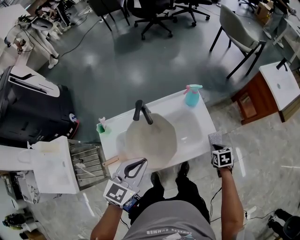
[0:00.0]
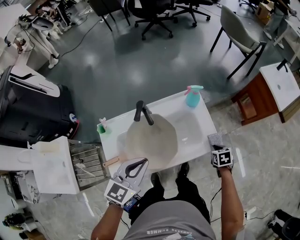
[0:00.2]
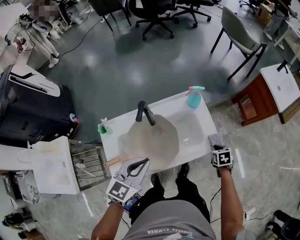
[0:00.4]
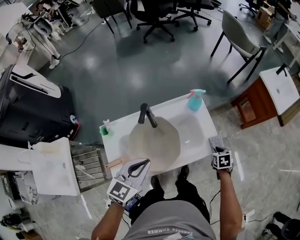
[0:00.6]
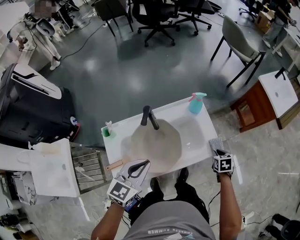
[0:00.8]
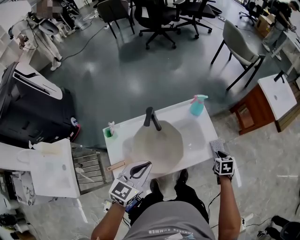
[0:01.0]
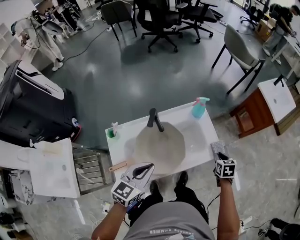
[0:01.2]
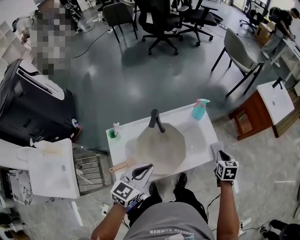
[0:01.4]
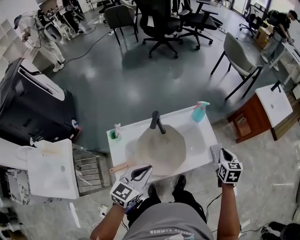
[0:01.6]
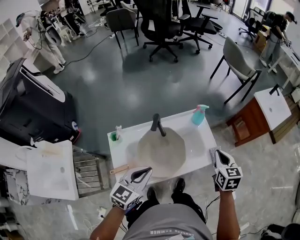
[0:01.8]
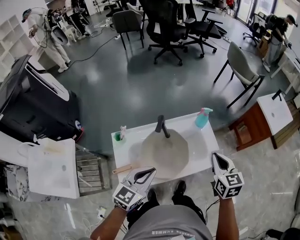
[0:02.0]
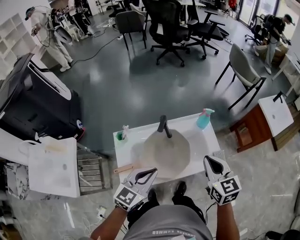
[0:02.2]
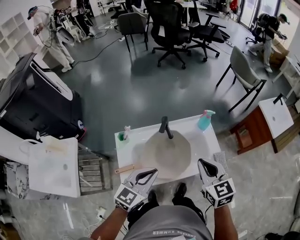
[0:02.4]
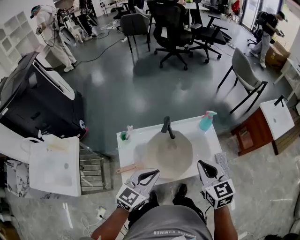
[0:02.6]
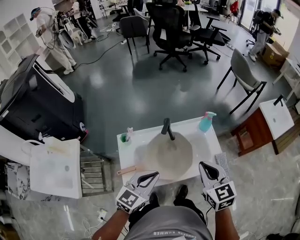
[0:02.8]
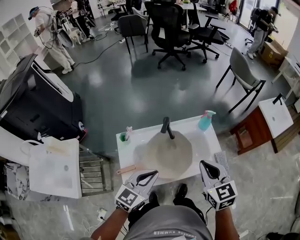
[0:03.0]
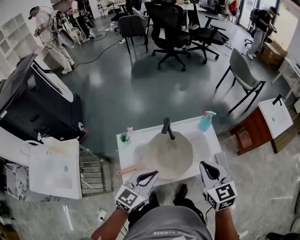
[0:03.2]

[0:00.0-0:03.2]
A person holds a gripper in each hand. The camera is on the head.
0:00.0 to 0:01.6: The left gripper heads to the left, covering some 5 cm; the right gripper shifts some 20 cm upward, and turns by approximately 30 degrees.
0:01.6 to 0:03.2: The right gripper moves to the left, upward and backward, about 25 cm, and turns by roughly 30 degrees. Meanwhile the left gripper changes place by about 5 cm.

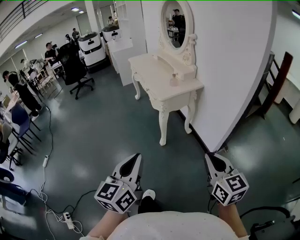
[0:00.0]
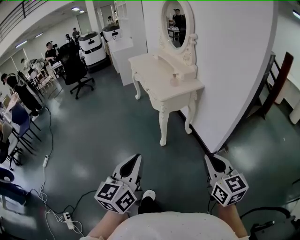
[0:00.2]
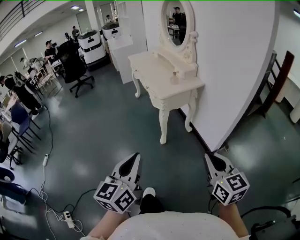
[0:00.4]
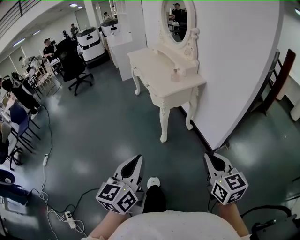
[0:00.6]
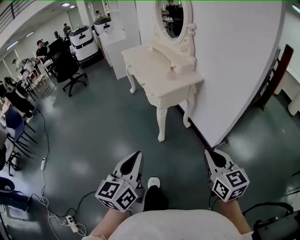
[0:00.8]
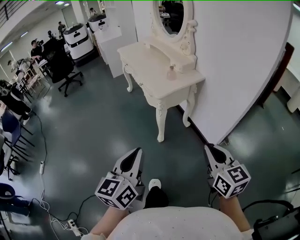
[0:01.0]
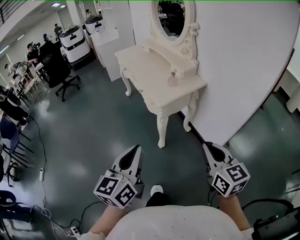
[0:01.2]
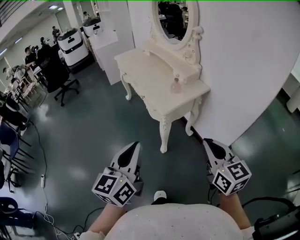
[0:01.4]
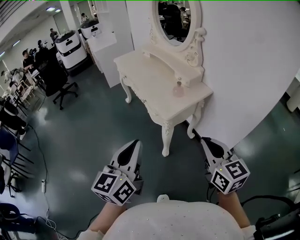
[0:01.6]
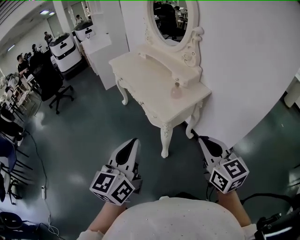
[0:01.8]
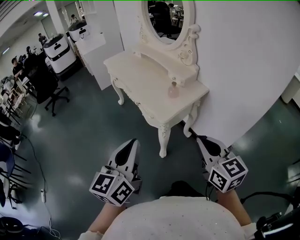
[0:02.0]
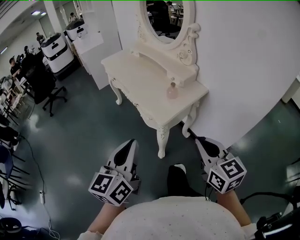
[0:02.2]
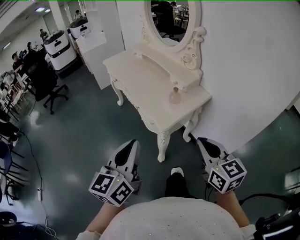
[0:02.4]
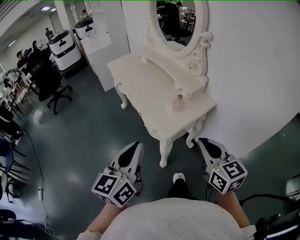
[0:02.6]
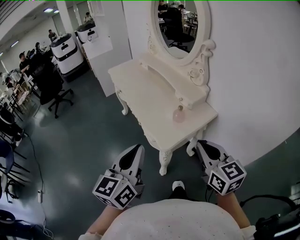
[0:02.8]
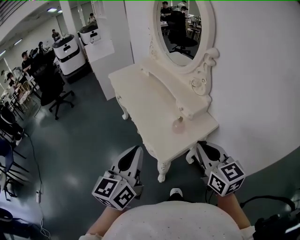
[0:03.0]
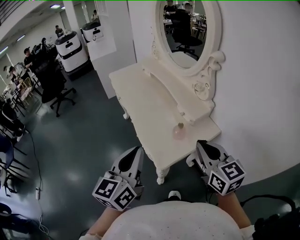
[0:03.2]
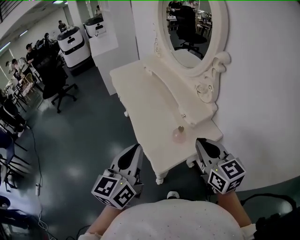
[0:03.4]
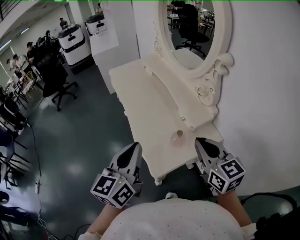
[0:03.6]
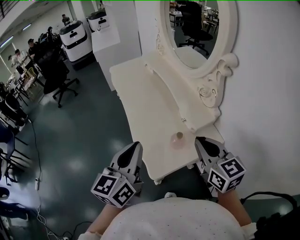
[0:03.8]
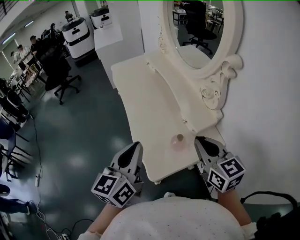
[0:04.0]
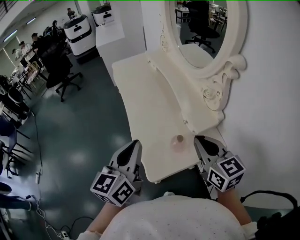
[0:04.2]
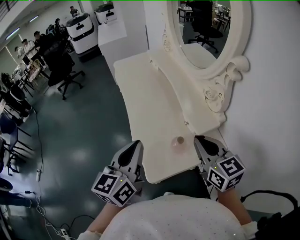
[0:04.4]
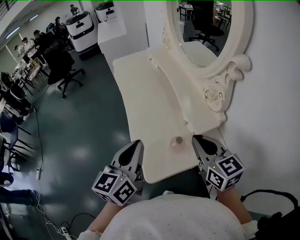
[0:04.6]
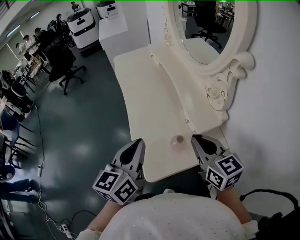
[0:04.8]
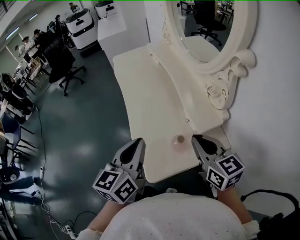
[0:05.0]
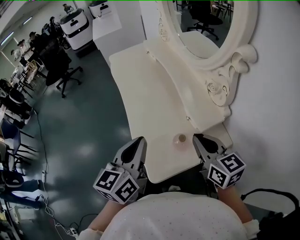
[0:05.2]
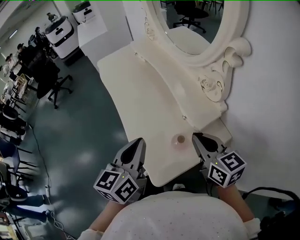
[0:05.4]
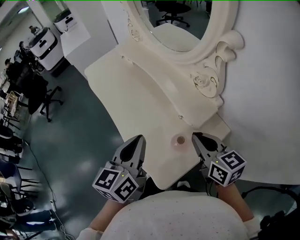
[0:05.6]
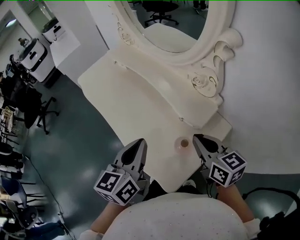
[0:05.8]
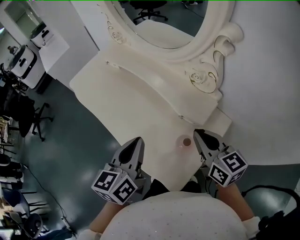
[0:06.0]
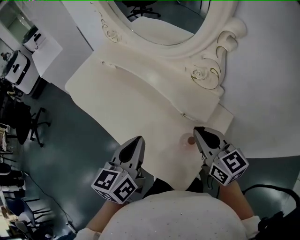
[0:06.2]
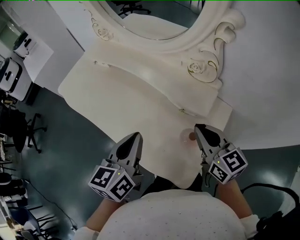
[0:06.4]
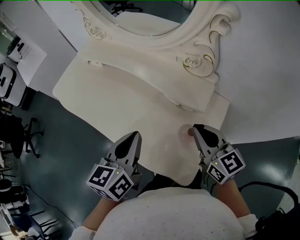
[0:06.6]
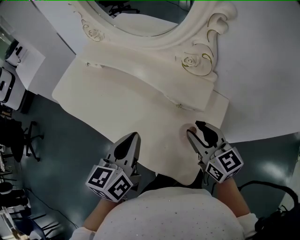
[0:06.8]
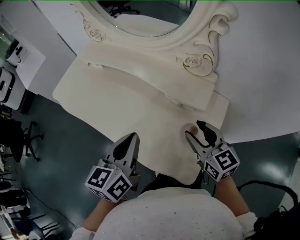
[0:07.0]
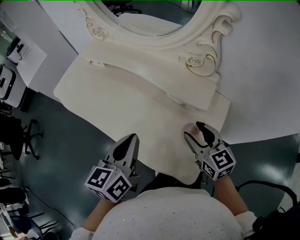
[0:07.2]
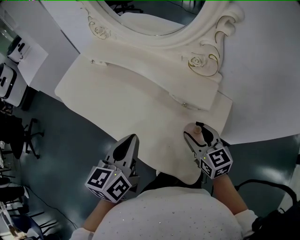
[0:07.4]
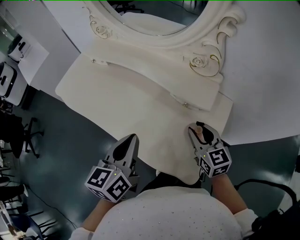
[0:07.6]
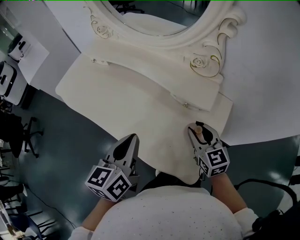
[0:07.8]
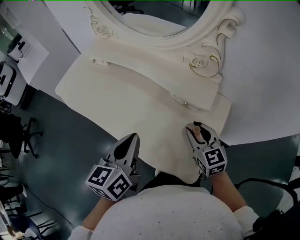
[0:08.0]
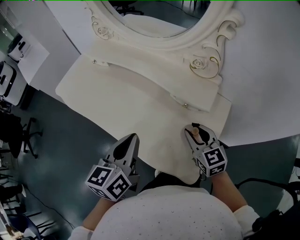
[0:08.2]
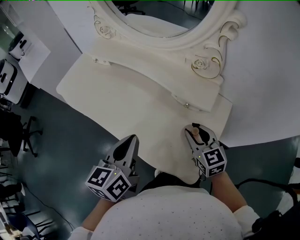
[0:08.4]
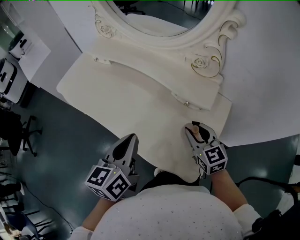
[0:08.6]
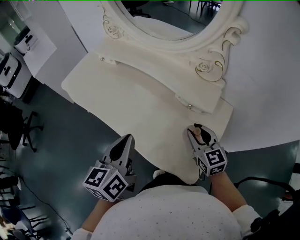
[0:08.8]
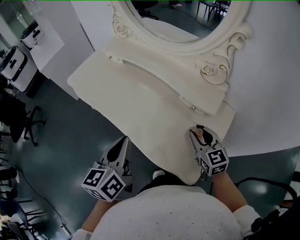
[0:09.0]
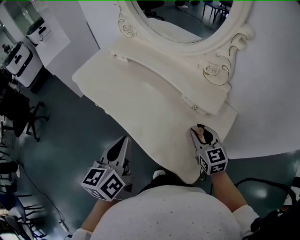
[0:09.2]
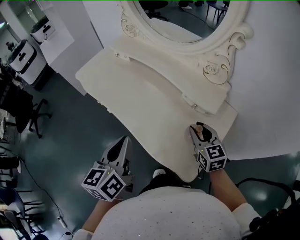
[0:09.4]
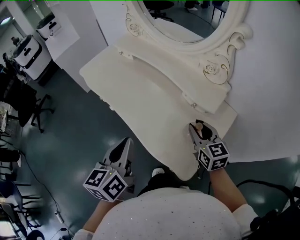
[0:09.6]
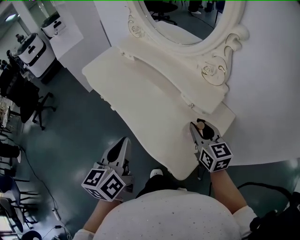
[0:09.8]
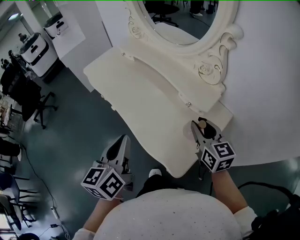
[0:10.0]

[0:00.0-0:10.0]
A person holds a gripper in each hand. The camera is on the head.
0:00.0 to 0:01.4: Both grippers travel together forward, roughly 30 cm.
0:01.4 to 0:02.8: The two grippers go roughly 25 cm forward.
0:02.8 to 0:04.2: Both grippers travel together forward, approximately 20 cm.
0:04.2 to 0:05.8: The left gripper moves forward and downward, some 15 cm, and swivels roughly 20 degrees; the right gripper heads downward and forward, covering approximately 10 cm, and turns by some 20 degrees.
0:05.8 to 0:07.2: The right gripper goes roughly 5 cm downward, changes its angle by about 20 degrees, and opens up, while the left gripper heads to the left, covering about 5 cm.
0:07.2 to 0:08.6: The right gripper closes up.
0:08.6 to 0:10.0: The left gripper travels backward by some 10 cm, and rotates approximately 20 degrees. Meanwhile the right gripper travels upward by approximately 10 cm.

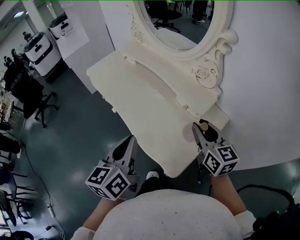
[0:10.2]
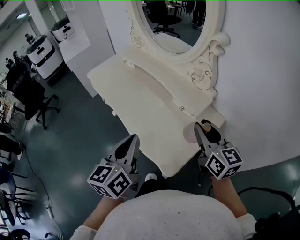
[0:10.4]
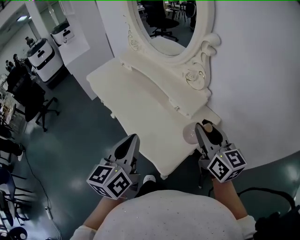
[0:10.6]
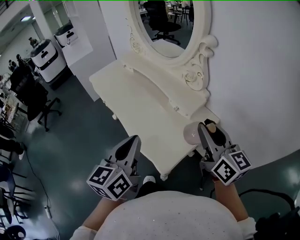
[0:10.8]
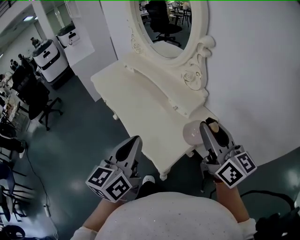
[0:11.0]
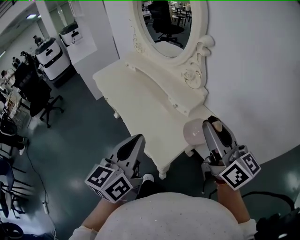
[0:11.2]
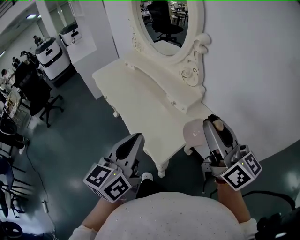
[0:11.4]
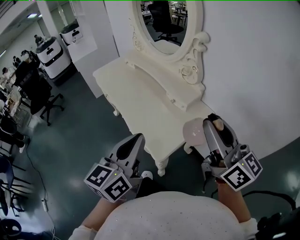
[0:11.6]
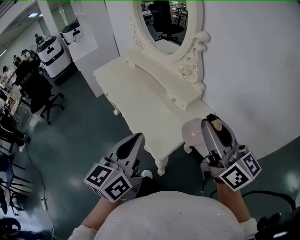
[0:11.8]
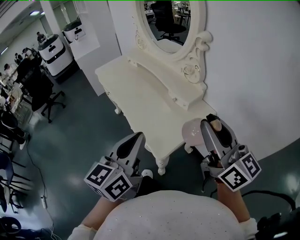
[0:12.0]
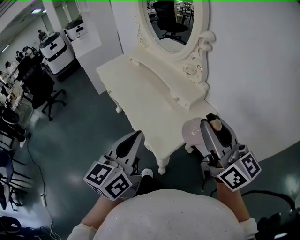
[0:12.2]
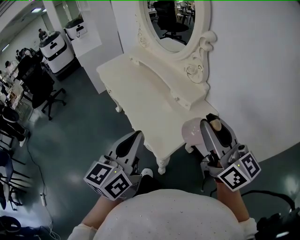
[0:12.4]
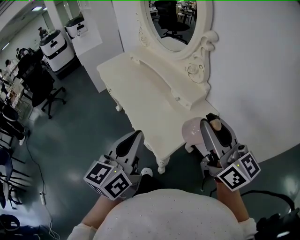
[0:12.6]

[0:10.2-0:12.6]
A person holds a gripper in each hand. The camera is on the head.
0:10.2 to 0:11.4: The left gripper is displaced backward, to the right and upward by some 20 cm, while the right gripper moves upward and backward, about 25 cm, and turns by approximately 30 degrees.
0:11.4 to 0:12.6: There are only small adjustments of the grippers.

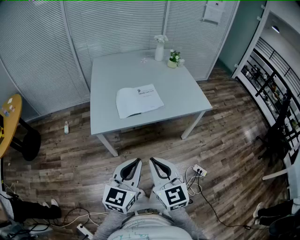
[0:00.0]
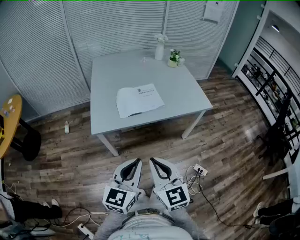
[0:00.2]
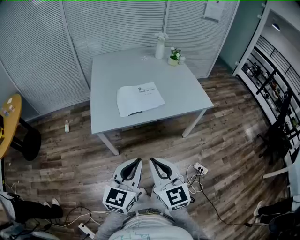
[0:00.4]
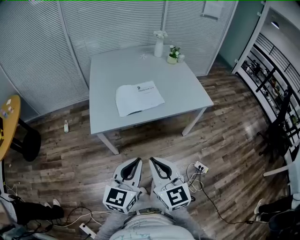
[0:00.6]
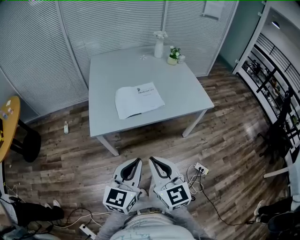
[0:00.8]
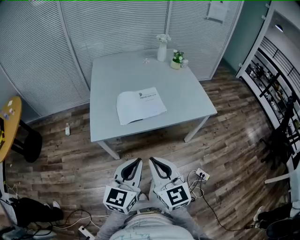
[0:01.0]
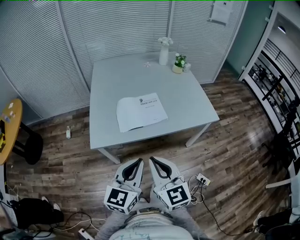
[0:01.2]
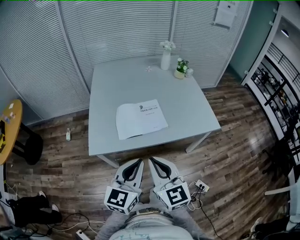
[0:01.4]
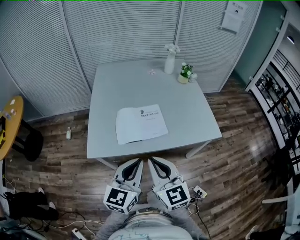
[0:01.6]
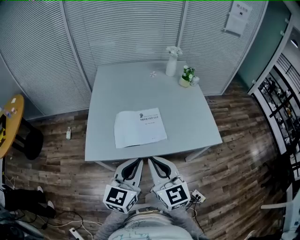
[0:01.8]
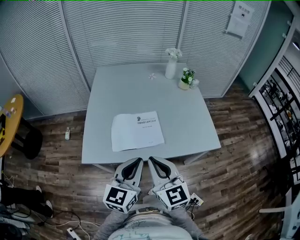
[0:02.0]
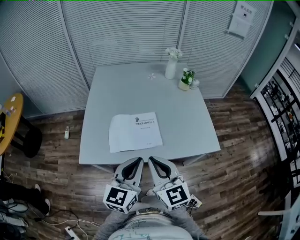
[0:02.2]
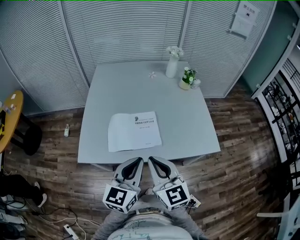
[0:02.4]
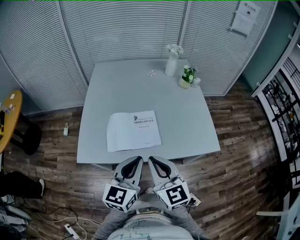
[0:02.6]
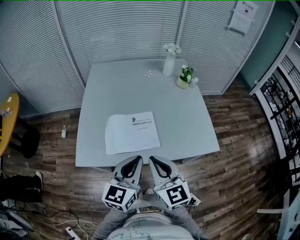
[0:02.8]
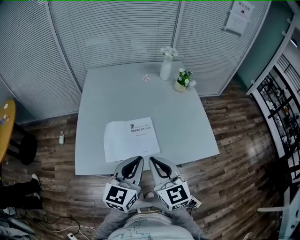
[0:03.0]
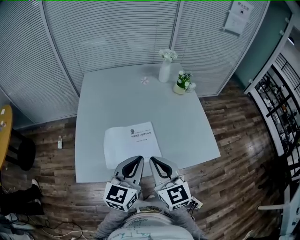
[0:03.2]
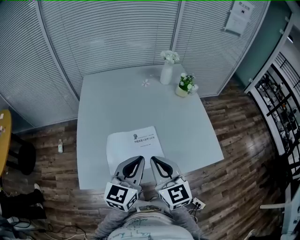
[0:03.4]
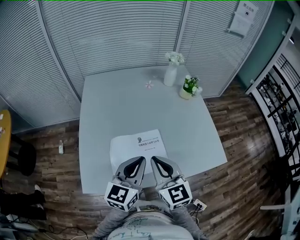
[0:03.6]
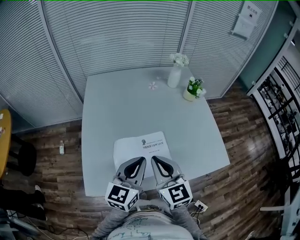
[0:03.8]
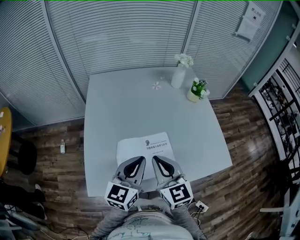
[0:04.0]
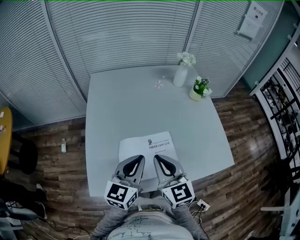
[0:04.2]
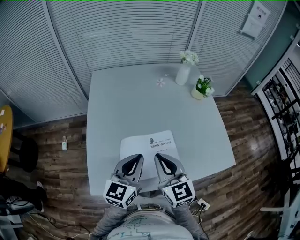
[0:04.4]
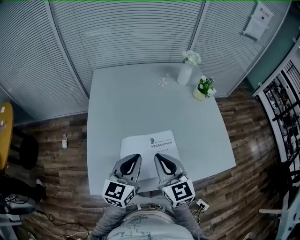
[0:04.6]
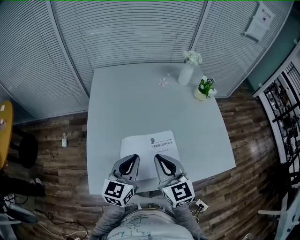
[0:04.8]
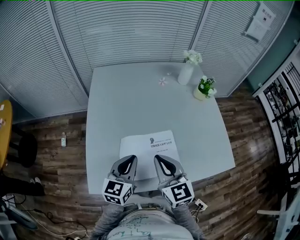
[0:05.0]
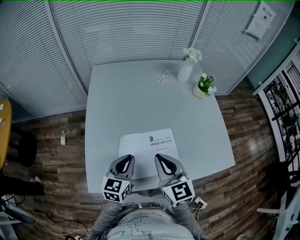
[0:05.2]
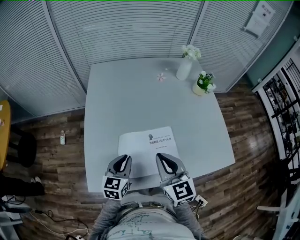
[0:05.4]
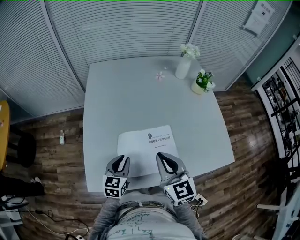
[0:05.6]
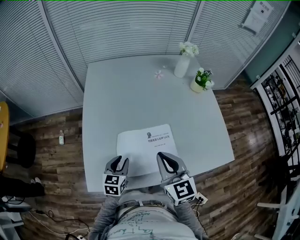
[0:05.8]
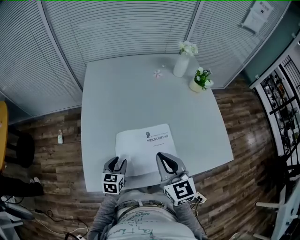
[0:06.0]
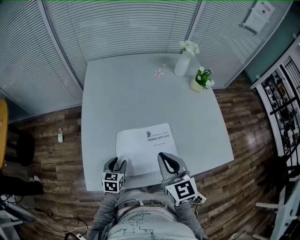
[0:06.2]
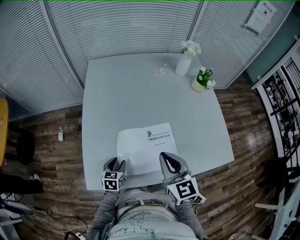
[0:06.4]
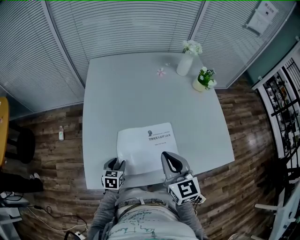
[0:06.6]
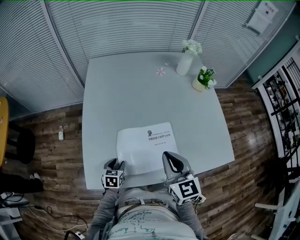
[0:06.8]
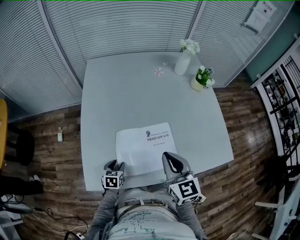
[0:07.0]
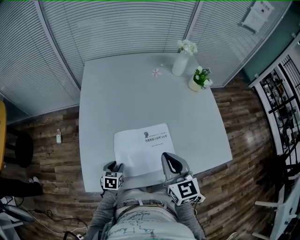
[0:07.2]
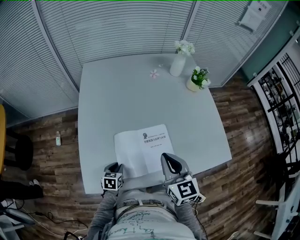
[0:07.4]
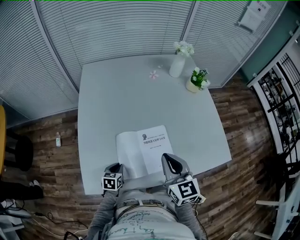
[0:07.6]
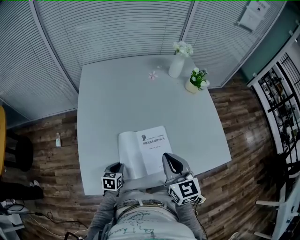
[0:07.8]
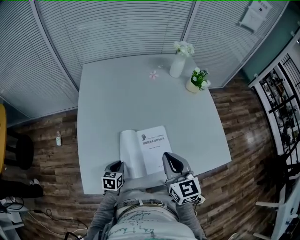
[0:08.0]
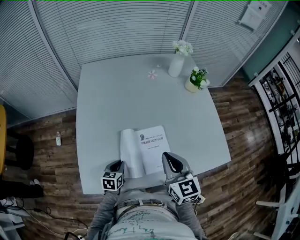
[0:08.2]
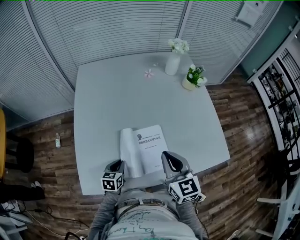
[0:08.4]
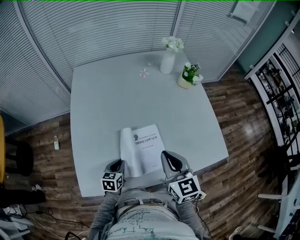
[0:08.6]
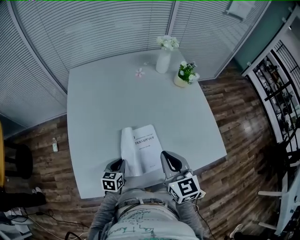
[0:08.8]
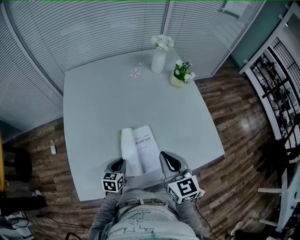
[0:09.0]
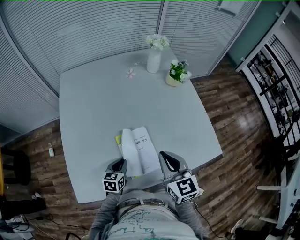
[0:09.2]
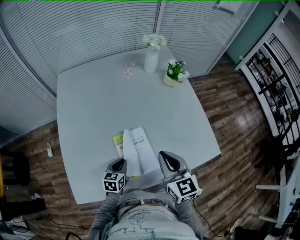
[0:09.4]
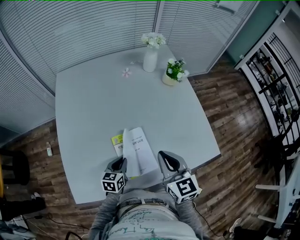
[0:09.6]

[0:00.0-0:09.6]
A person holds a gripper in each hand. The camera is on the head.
0:00.0 to 0:01.6: Both grippers move forward, roughly 25 cm.
0:01.6 to 0:03.2: Both grippers move forward, approximately 20 cm.
0:03.2 to 0:04.8: The left gripper shifts approximately 20 cm to the left, forward and downward. Meanwhile the right gripper travels to the left and forward by roughly 15 cm.
0:04.8 to 0:06.4: The left gripper travels downward by some 25 cm, tilts its fingers about 30 degrees downward, and opens up.
0:06.4 to 0:08.0: The left gripper closes its fingers.
0:08.0 to 0:09.6: The left gripper goes approximately 15 cm to the right and forward, while the right gripper travels to the right by some 10 cm.
